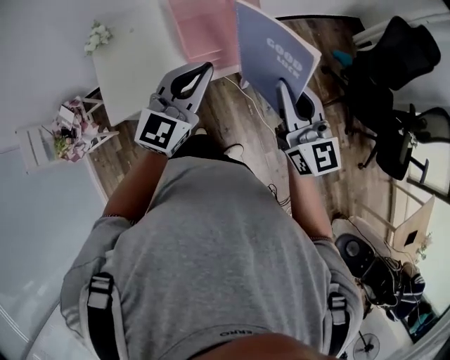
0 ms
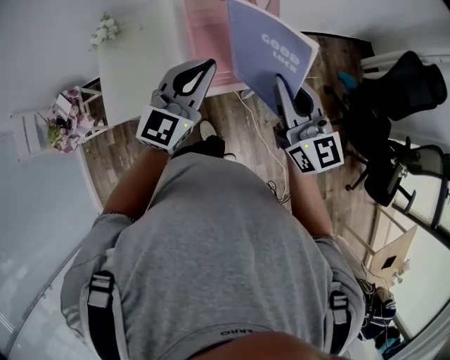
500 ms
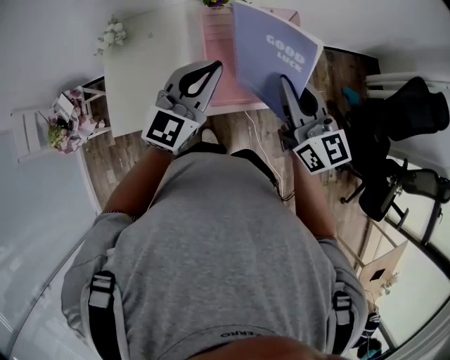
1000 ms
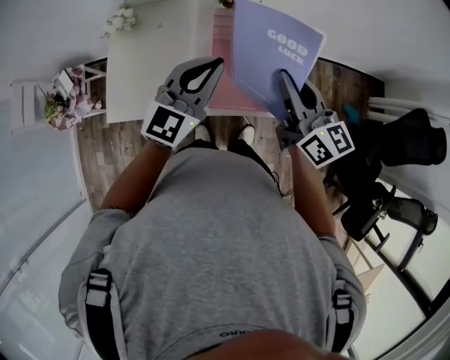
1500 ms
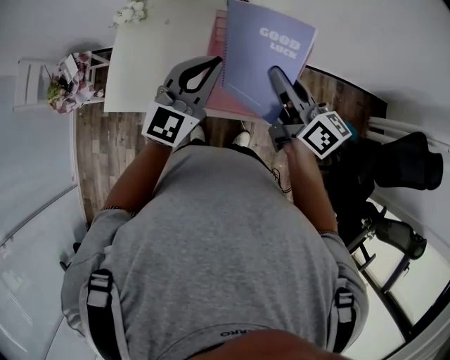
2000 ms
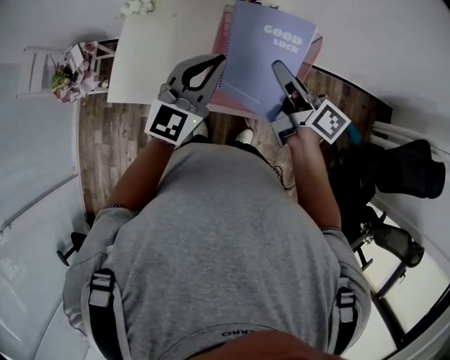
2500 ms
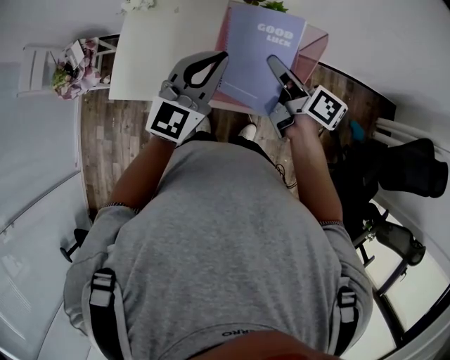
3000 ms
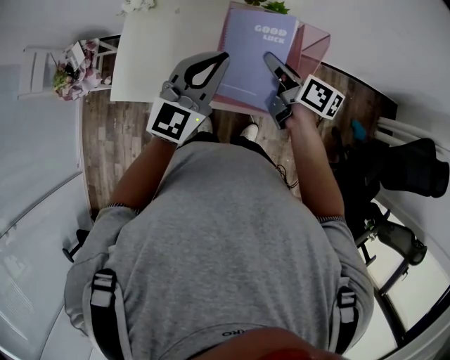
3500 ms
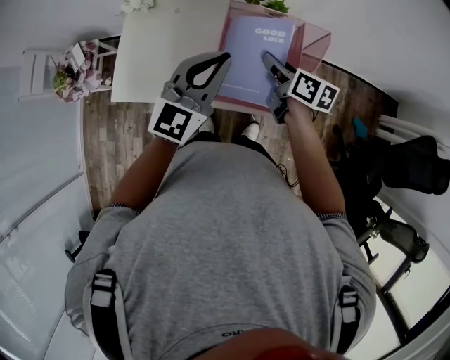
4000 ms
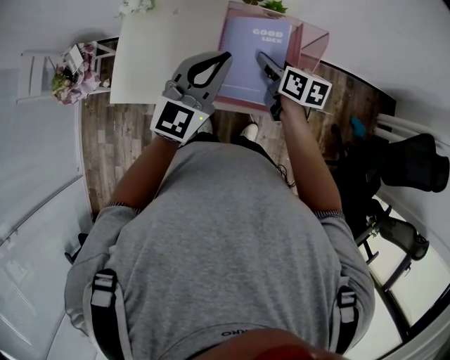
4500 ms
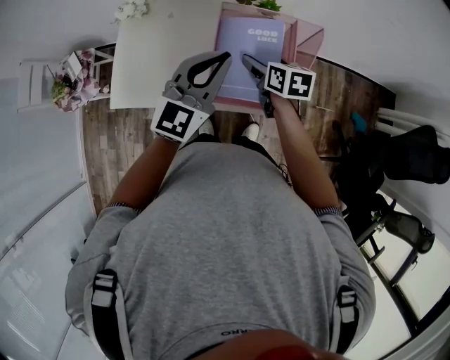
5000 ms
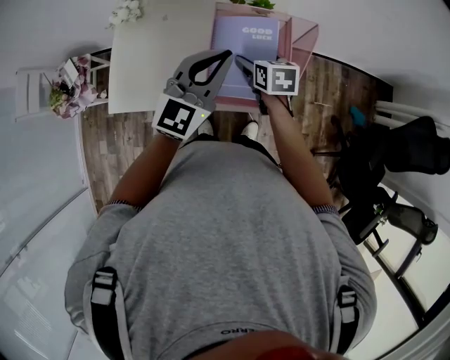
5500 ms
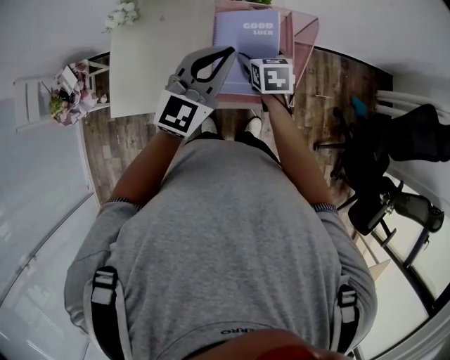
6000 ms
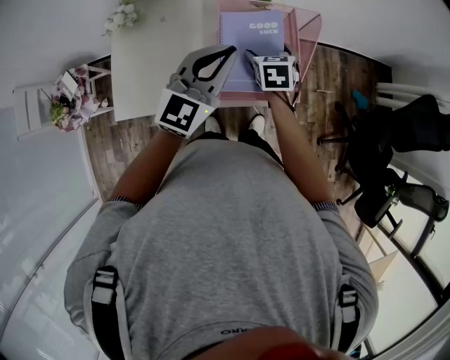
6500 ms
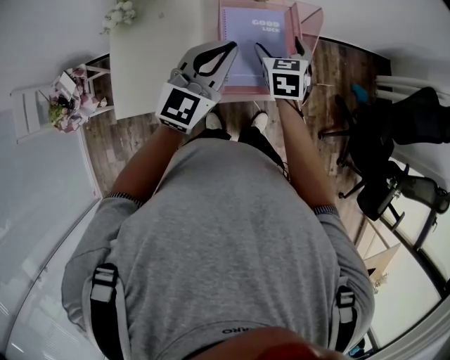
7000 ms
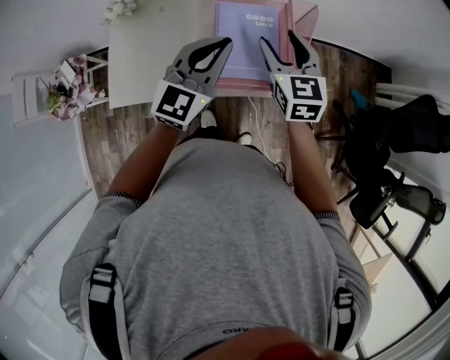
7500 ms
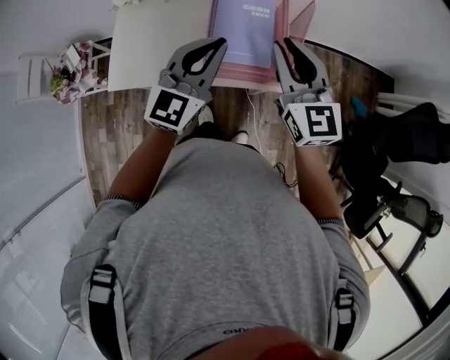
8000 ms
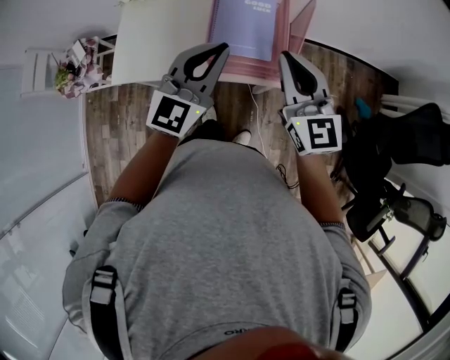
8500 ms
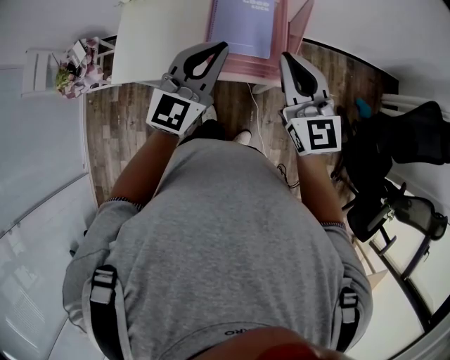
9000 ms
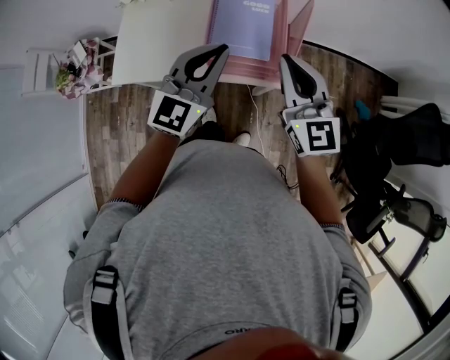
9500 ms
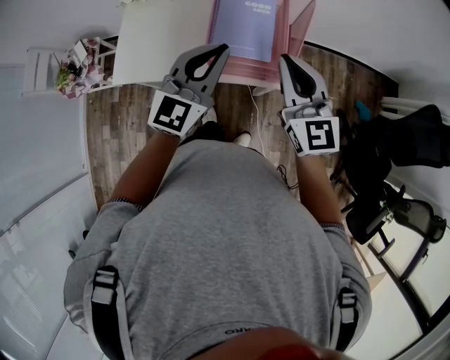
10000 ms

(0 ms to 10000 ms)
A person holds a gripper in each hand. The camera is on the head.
0 ms - 2000 ms: The left gripper changes place by roughly 20 cm, and swivels some 20 degrees, while the right gripper shifts by some 30 cm, and changes its angle by roughly 50 degrees.
2000 ms - 4000 ms: The right gripper shifts approximately 15 cm downward and forward, and rotates roughly 30 degrees.
4000 ms - 6000 ms: The right gripper heads downward, covering some 5 cm, swivels approximately 40 degrees, and opens.
6000 ms - 8000 ms: The left gripper is displaced backward by approximately 10 cm. The right gripper is displaced upward and backward by some 25 cm, tilts its fingers roughly 40 degrees upward, and closes its fingers.
8000 ms - 10000 ms: The right gripper is displaced backward by roughly 5 cm.

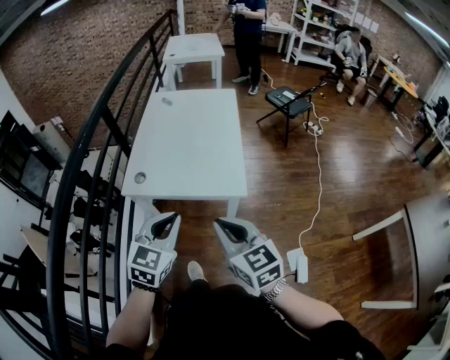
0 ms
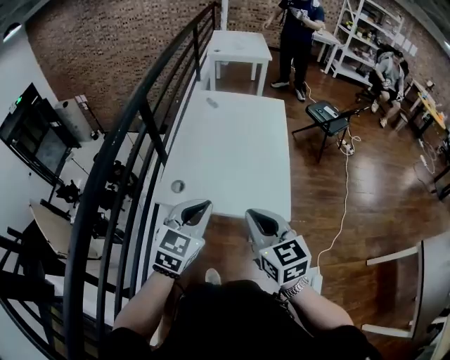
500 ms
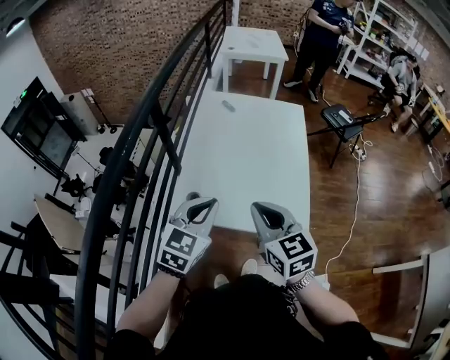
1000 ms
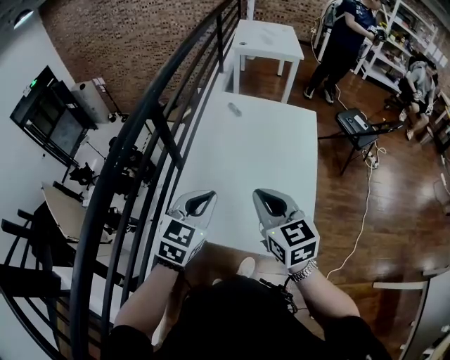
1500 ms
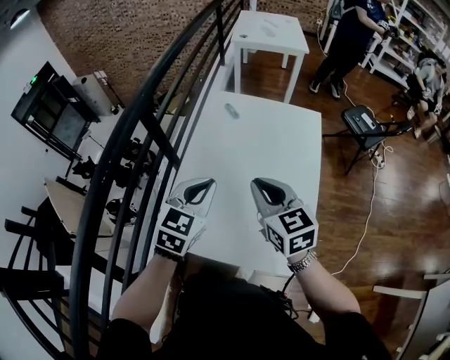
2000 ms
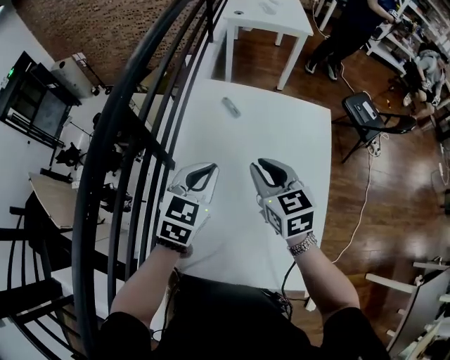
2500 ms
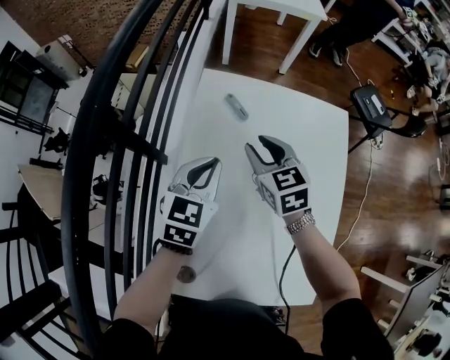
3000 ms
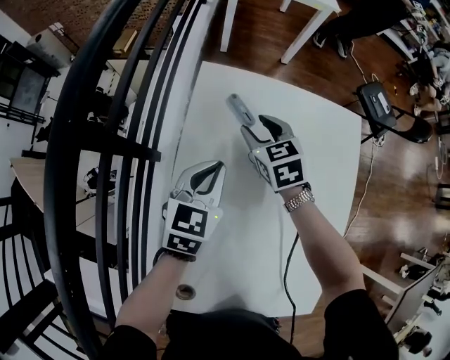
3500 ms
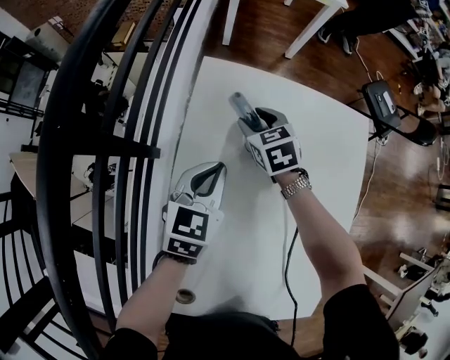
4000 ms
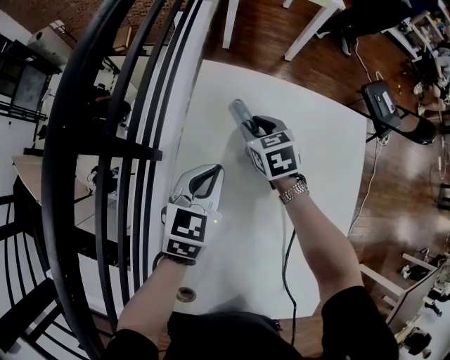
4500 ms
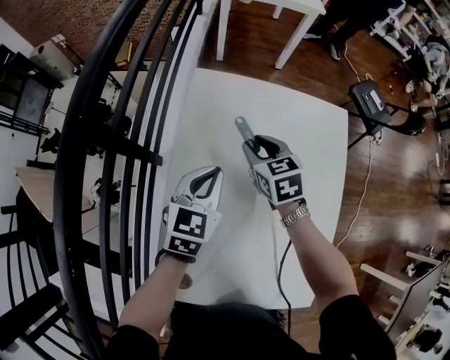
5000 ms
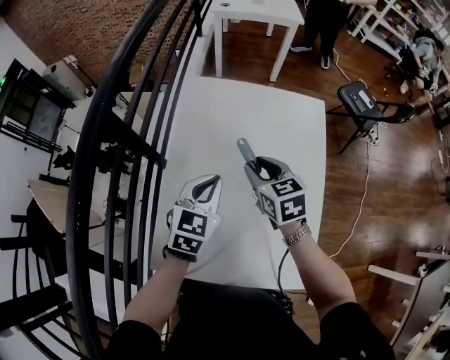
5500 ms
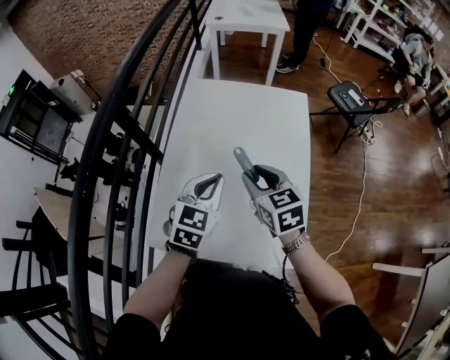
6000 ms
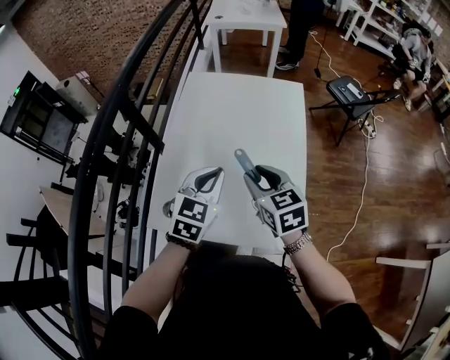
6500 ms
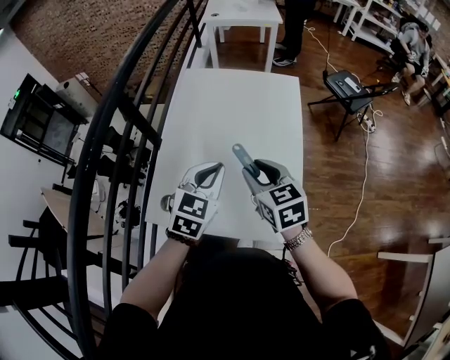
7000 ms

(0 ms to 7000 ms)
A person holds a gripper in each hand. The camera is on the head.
0 ms - 2000 ms: The two grippers travel together, forward, roughly 50 cm.
2000 ms - 3500 ms: The grippers both shift forward and downward by roughly 40 cm. The right gripper rotates approximately 20 degrees, and opens up.
3500 ms - 5000 ms: The right gripper heads backward, covering some 5 cm. The left gripper shifts by some 5 cm.
5000 ms - 7000 ms: The left gripper goes some 35 cm backward and to the right. Meanwhile the right gripper moves backward and upward, some 40 cm.

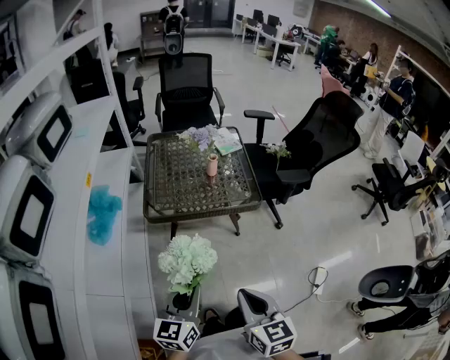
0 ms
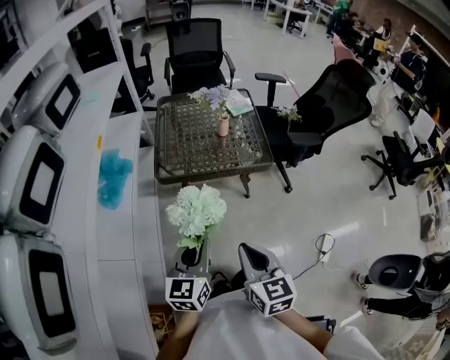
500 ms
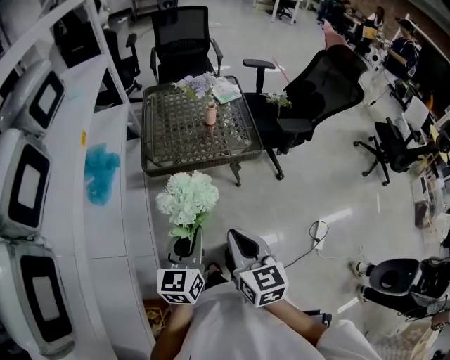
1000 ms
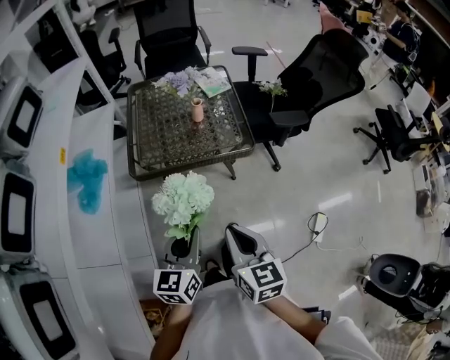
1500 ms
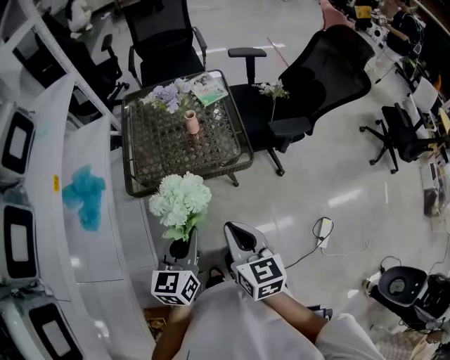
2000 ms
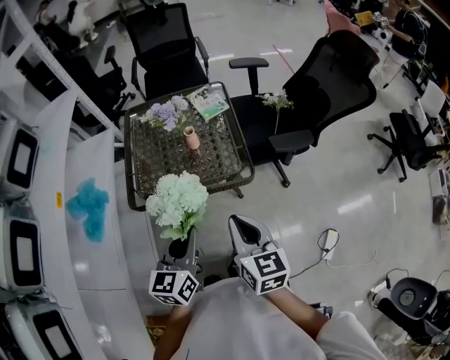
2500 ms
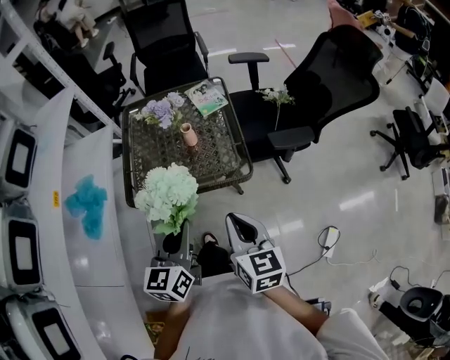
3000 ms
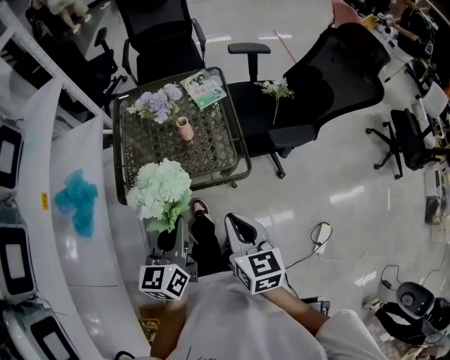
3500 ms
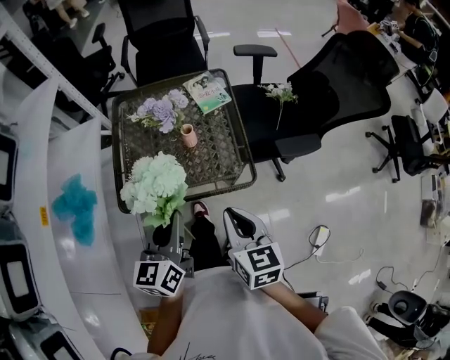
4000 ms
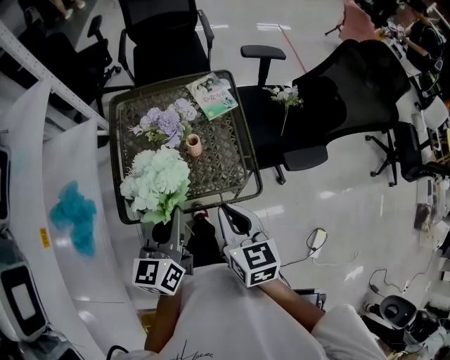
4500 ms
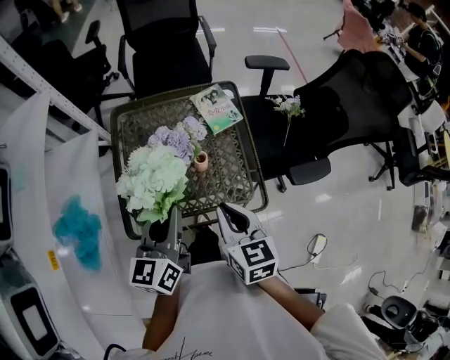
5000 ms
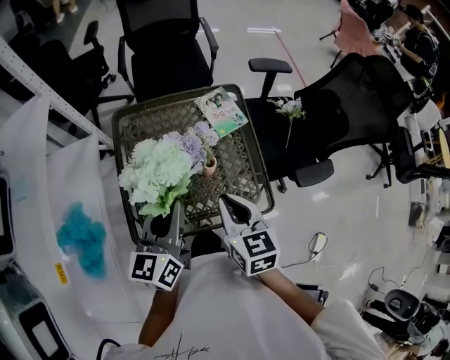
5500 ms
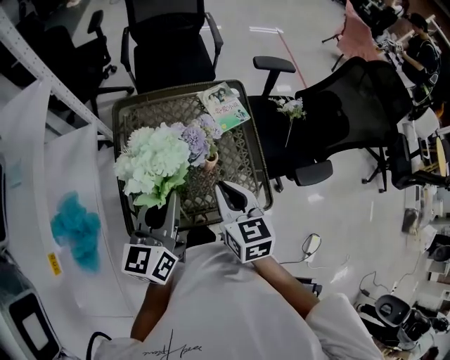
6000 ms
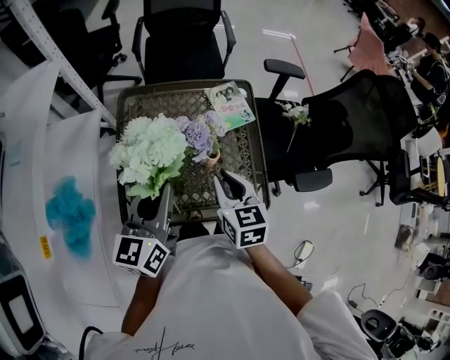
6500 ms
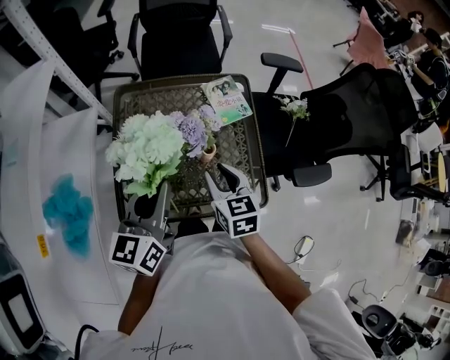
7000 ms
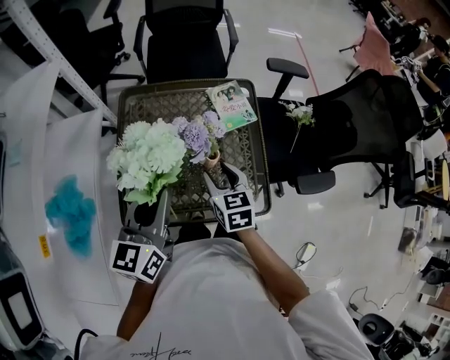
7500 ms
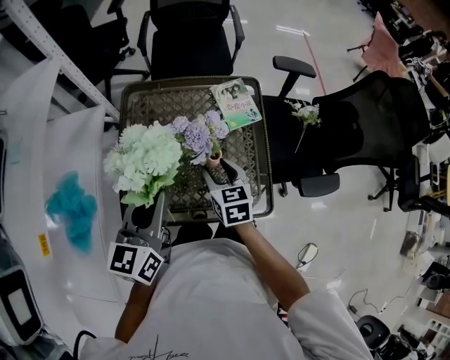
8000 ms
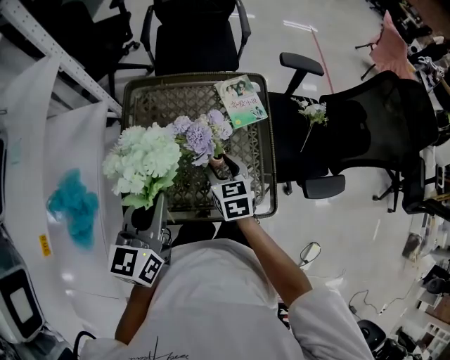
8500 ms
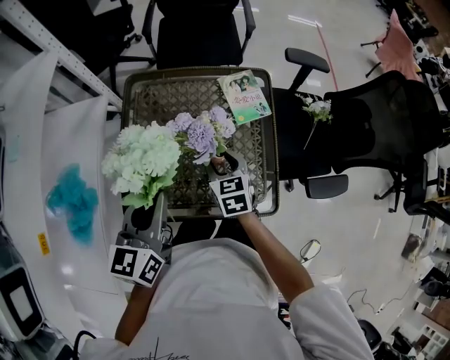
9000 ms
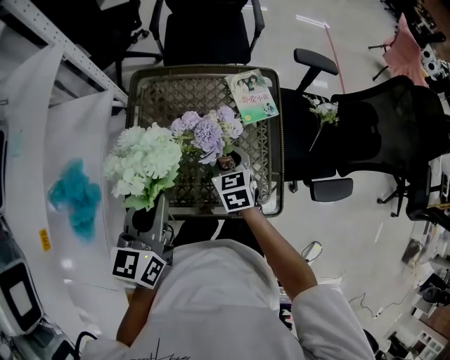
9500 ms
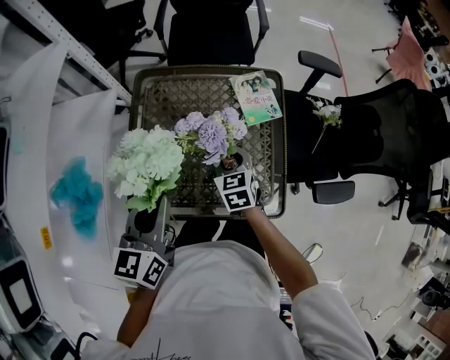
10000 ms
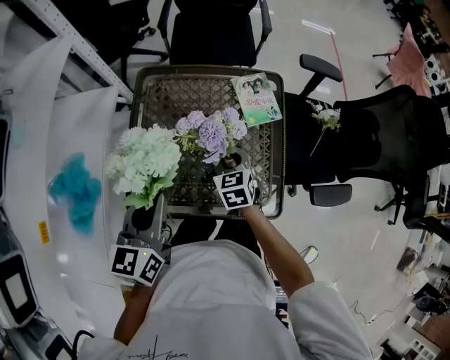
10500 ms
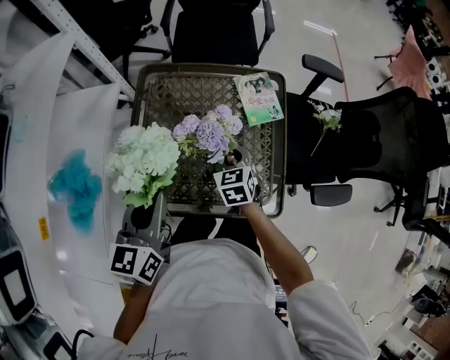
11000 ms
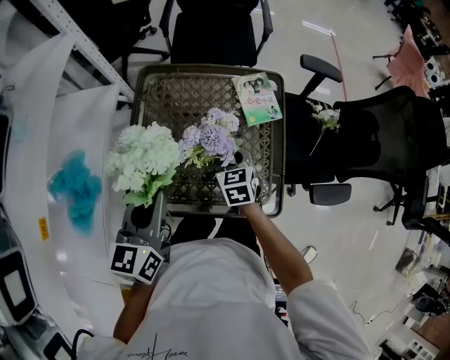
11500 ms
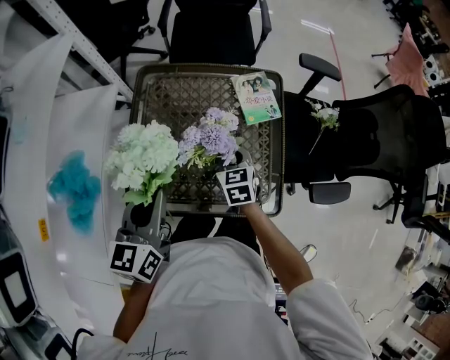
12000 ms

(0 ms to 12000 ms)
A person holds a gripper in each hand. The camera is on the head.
0 ms - 2000 ms: The right gripper is displaced forward by approximately 20 cm. The left gripper travels forward and to the right by roughly 20 cm.
2000 ms - 4000 ms: The two grippers go some 15 cm forward.
4000 ms - 6000 ms: The two grippers go about 25 cm forward and to the left.
6000 ms - 8000 ms: The right gripper moves downward and forward, approximately 10 cm, and opens up.
8000 ms - 10000 ms: The right gripper is displaced downward by roughly 5 cm.
10000 ms - 12000 ms: The right gripper closes.
